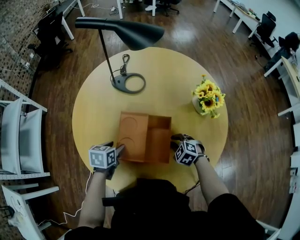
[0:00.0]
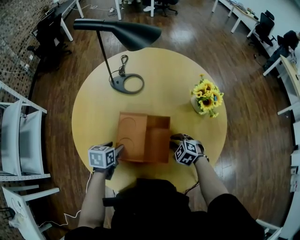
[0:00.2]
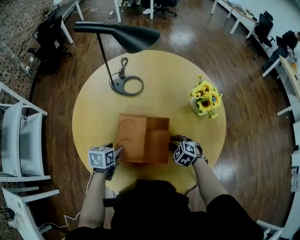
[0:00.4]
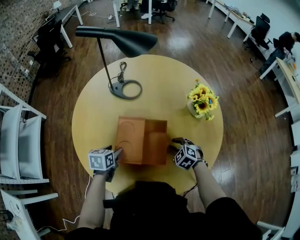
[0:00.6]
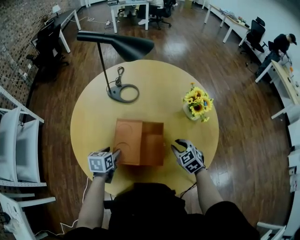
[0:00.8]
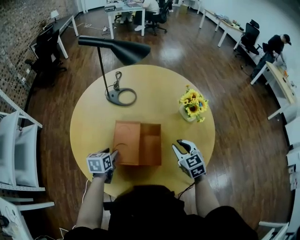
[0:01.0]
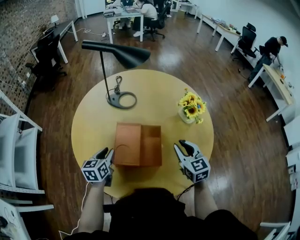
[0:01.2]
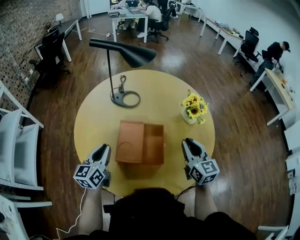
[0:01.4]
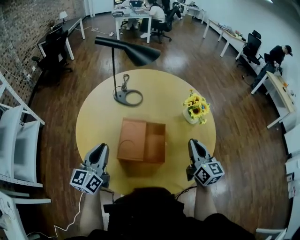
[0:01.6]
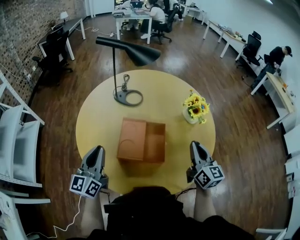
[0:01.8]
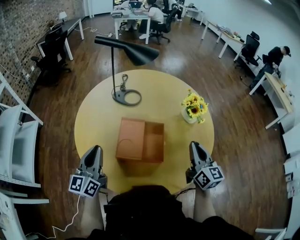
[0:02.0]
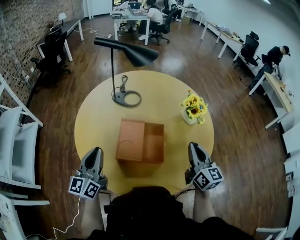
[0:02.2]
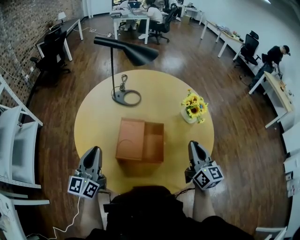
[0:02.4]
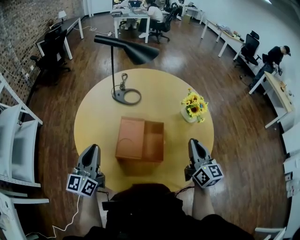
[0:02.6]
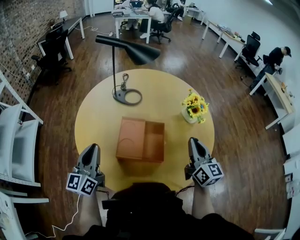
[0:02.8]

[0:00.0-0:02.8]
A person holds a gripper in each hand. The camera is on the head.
0:00.0 to 0:01.4: The right gripper shifts about 25 cm upward, and tilts its fingers roughly 50 degrees upward; the left gripper heads upward, covering roughly 15 cm, tilts its fingers about 40 degrees upward, and closes its fingers.
0:01.4 to 0:02.8: The left gripper travels backward and upward by roughly 5 cm.

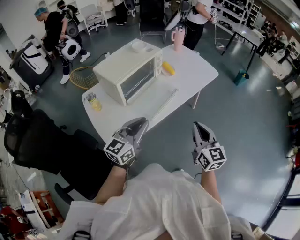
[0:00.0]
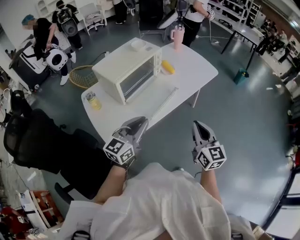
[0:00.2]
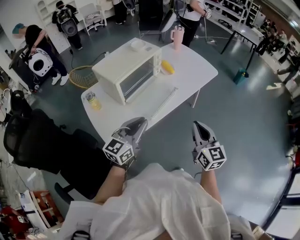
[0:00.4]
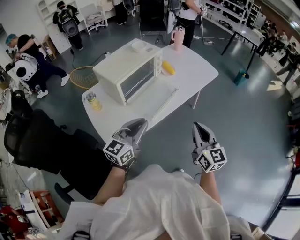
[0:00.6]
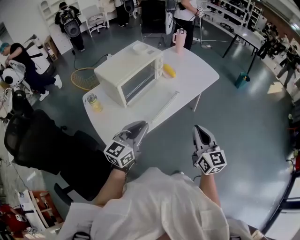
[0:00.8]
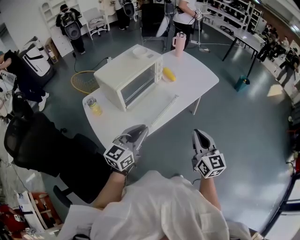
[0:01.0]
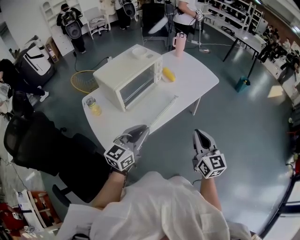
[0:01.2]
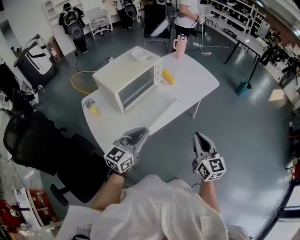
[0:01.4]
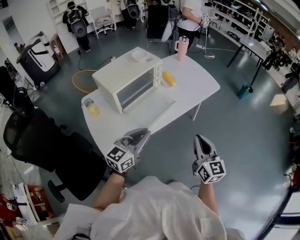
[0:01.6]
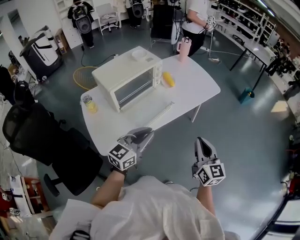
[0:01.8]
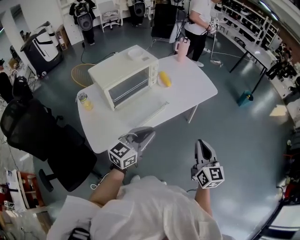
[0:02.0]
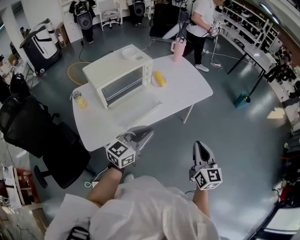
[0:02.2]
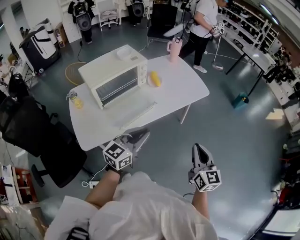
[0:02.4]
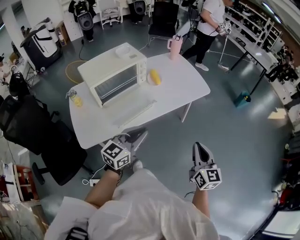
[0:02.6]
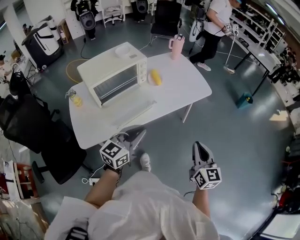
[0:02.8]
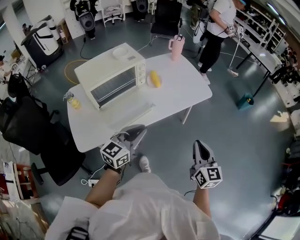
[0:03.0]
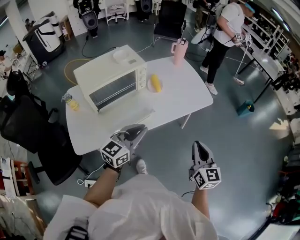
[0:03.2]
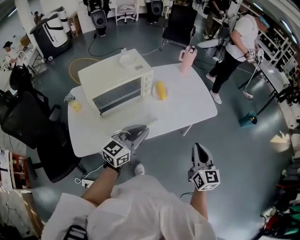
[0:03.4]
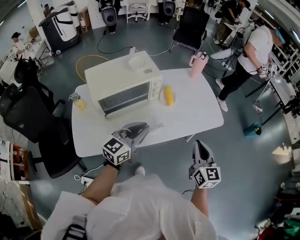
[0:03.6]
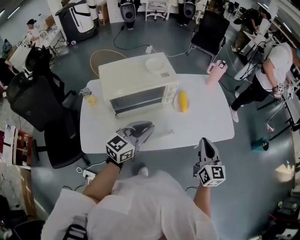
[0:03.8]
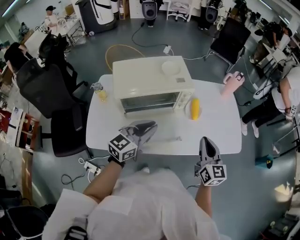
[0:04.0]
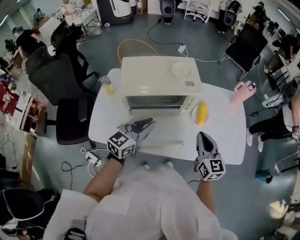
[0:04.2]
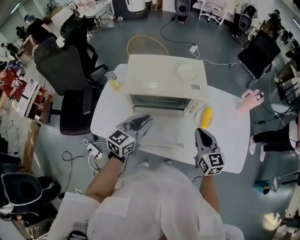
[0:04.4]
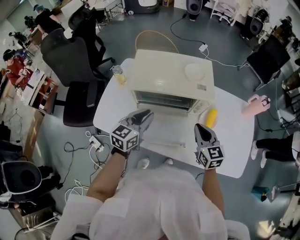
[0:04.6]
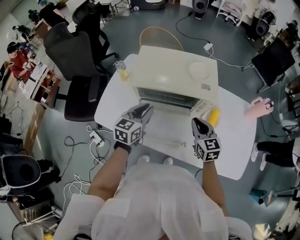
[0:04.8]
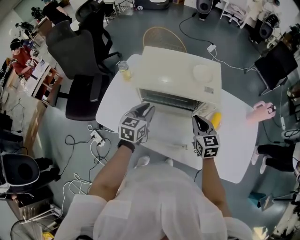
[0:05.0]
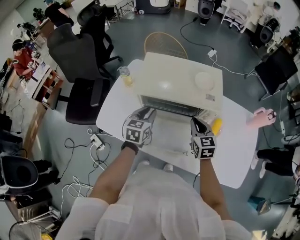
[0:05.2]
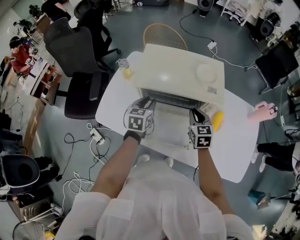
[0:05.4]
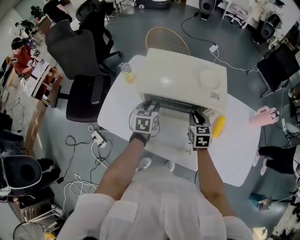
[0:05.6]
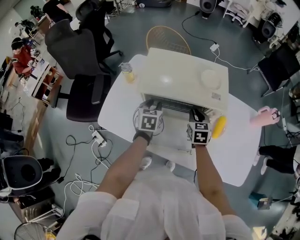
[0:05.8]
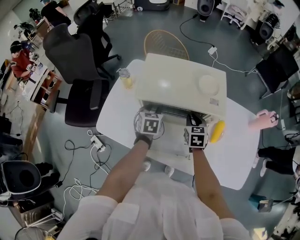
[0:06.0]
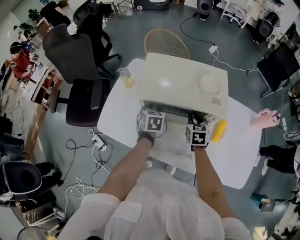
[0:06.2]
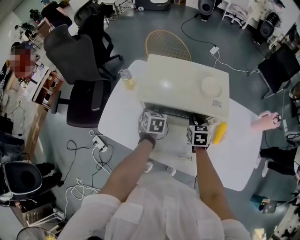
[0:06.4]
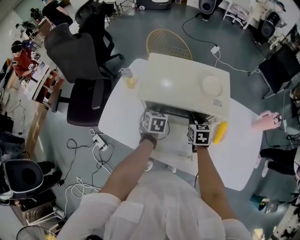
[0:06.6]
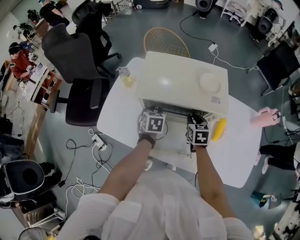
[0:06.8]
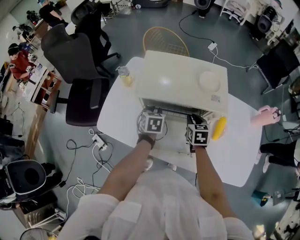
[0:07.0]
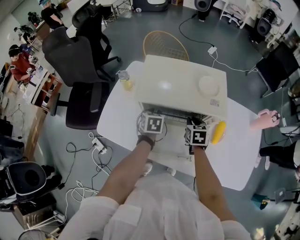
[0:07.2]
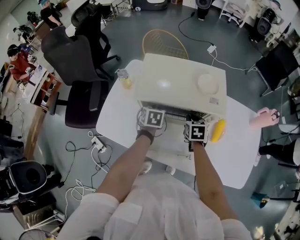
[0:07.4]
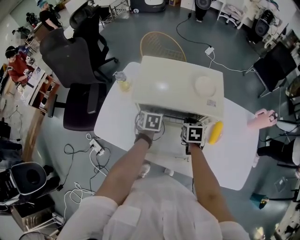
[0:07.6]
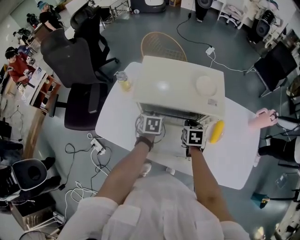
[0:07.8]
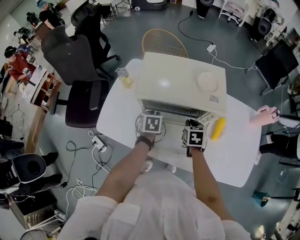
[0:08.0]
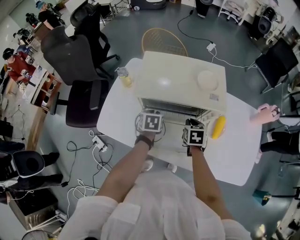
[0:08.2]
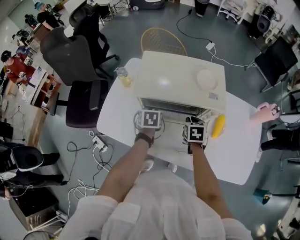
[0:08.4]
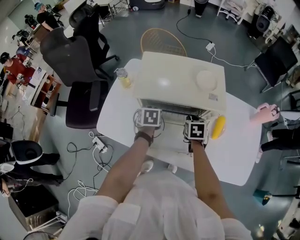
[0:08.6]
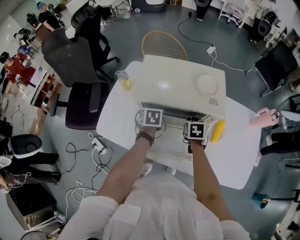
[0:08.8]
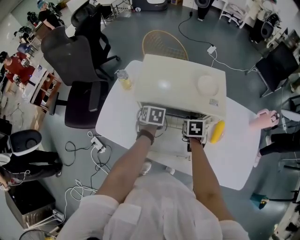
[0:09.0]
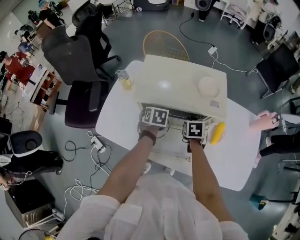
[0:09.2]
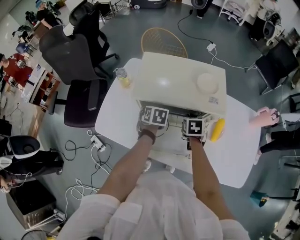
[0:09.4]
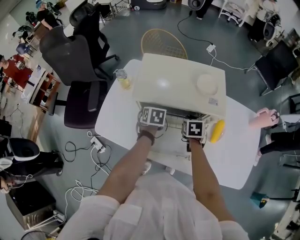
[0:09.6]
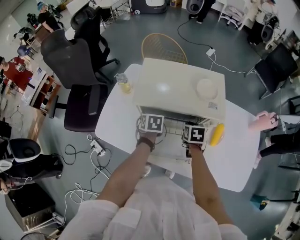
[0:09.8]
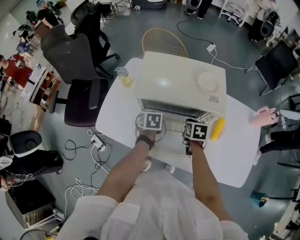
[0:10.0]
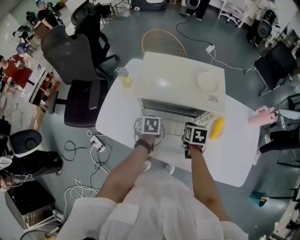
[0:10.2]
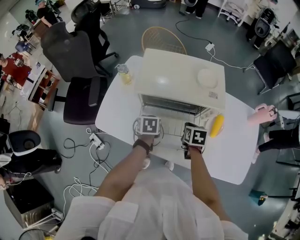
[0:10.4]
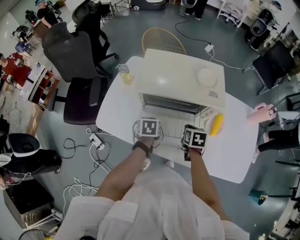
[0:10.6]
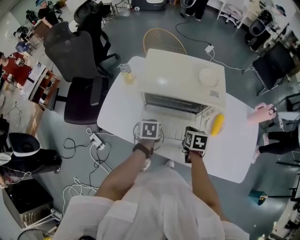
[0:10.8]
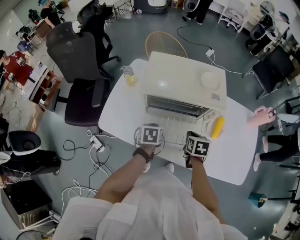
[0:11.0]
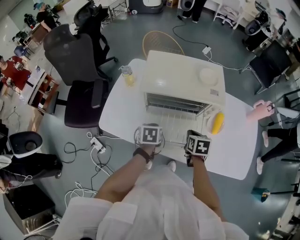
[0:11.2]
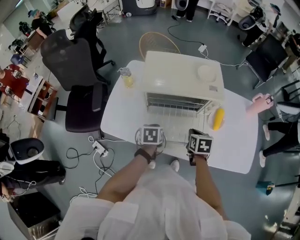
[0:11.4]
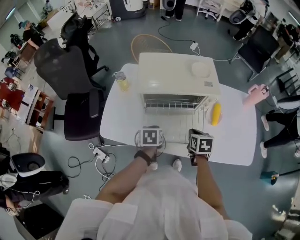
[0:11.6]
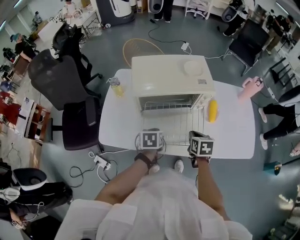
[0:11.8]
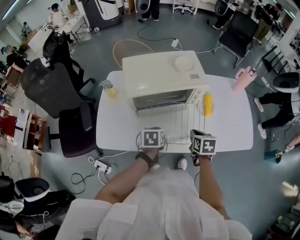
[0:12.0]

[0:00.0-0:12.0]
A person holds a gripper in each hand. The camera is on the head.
0:00.0 to 0:01.6: The grippers both shift to the right by roughly 5 cm.
0:01.6 to 0:03.0: The grippers both shift to the right and forward by approximately 20 cm.
0:03.0 to 0:04.4: The left gripper shifts by some 25 cm, and changes its angle by about 40 degrees. Meanwhile the right gripper ends up some 40 cm from where it was, and swivels approximately 50 degrees.
0:04.4 to 0:06.0: Both grippers travel together forward, downward and to the left, about 20 cm. The left gripper angles its fingers downward, by roughly 30 degrees; the right gripper swivels approximately 30 degrees.
0:06.0 to 0:09.0: The grippers make only small movements.
0:09.0 to 0:10.4: Both grippers travel together backward, about 5 cm.
0:10.4 to 0:12.0: The grippers both shift backward by approximately 10 cm.

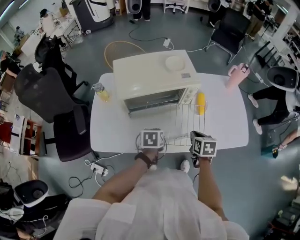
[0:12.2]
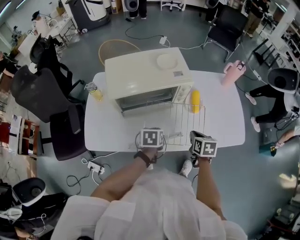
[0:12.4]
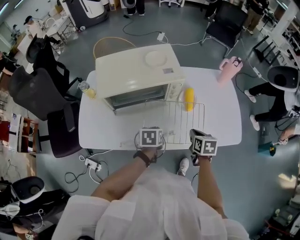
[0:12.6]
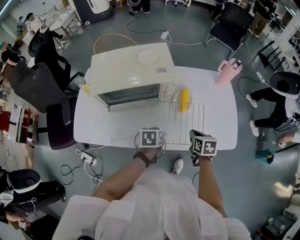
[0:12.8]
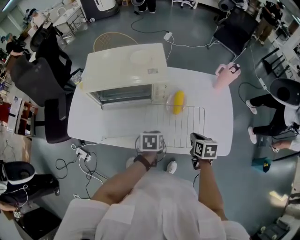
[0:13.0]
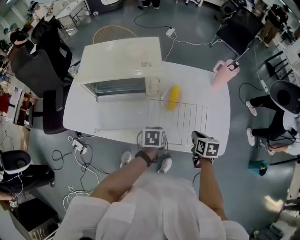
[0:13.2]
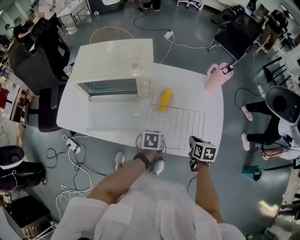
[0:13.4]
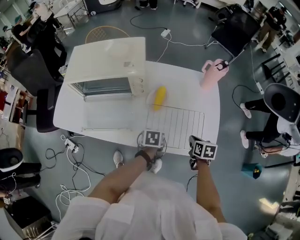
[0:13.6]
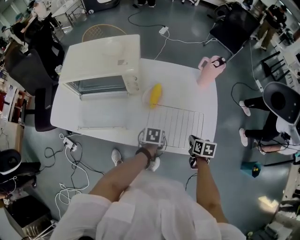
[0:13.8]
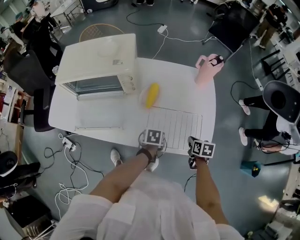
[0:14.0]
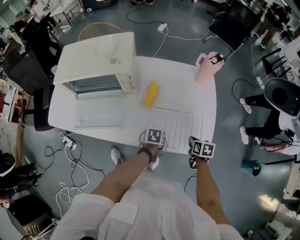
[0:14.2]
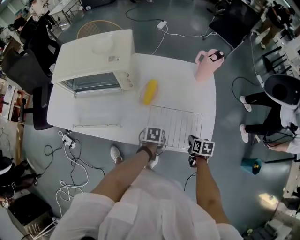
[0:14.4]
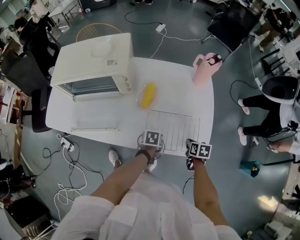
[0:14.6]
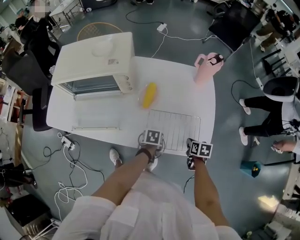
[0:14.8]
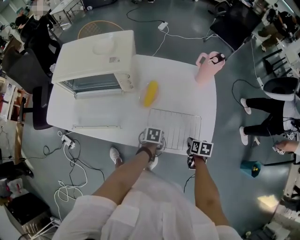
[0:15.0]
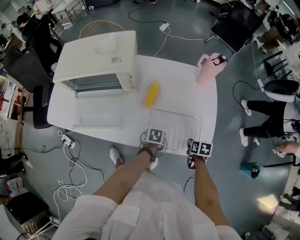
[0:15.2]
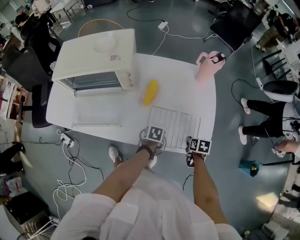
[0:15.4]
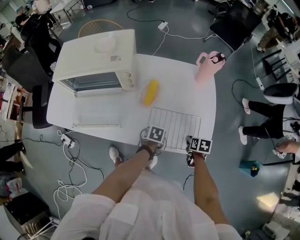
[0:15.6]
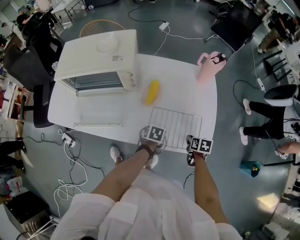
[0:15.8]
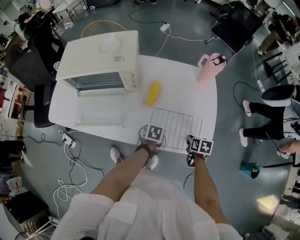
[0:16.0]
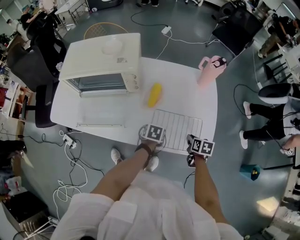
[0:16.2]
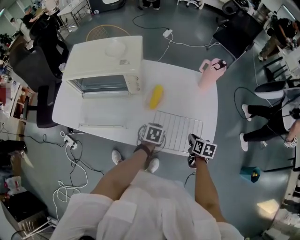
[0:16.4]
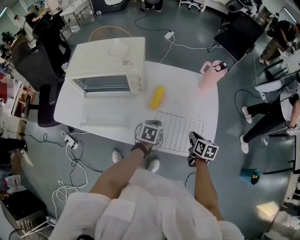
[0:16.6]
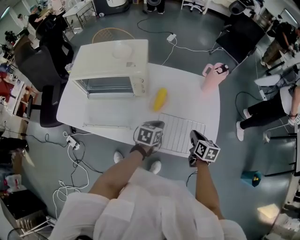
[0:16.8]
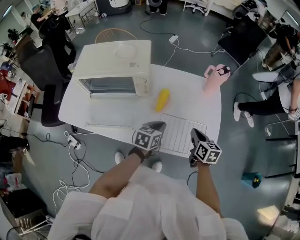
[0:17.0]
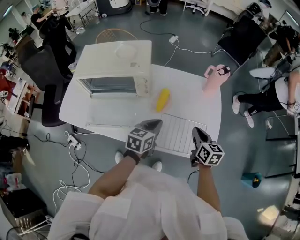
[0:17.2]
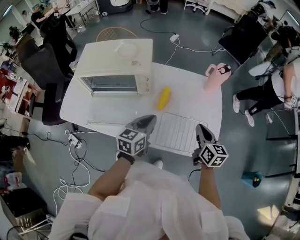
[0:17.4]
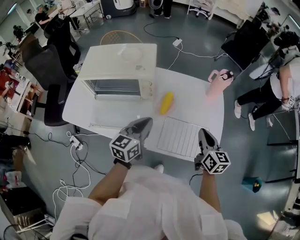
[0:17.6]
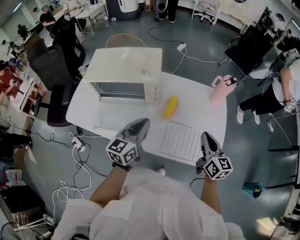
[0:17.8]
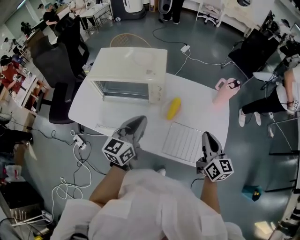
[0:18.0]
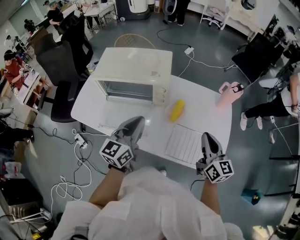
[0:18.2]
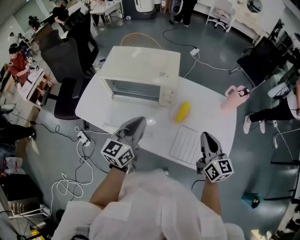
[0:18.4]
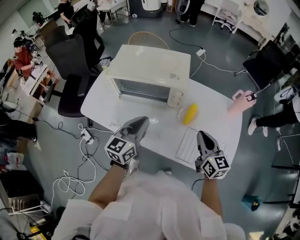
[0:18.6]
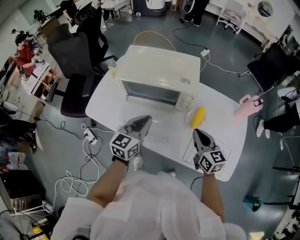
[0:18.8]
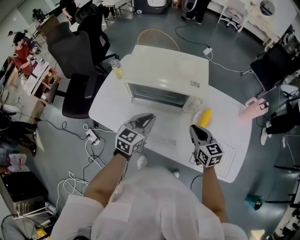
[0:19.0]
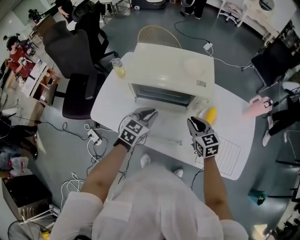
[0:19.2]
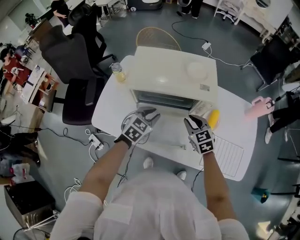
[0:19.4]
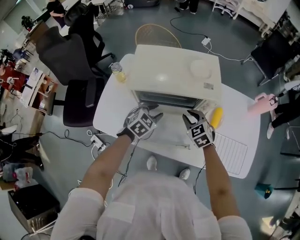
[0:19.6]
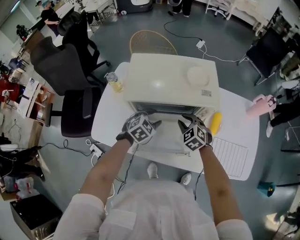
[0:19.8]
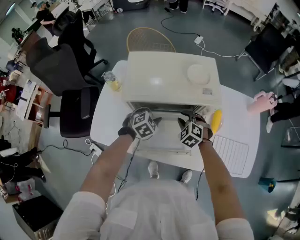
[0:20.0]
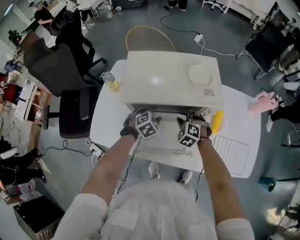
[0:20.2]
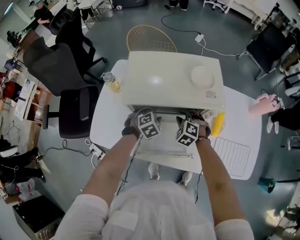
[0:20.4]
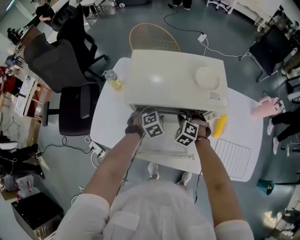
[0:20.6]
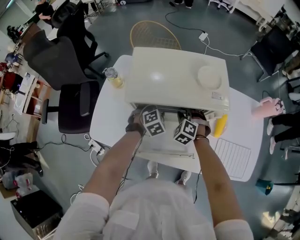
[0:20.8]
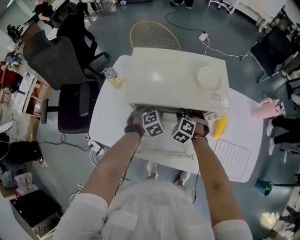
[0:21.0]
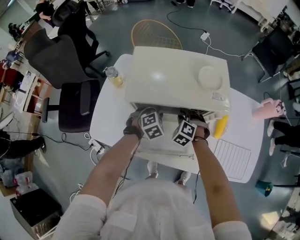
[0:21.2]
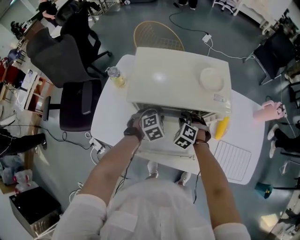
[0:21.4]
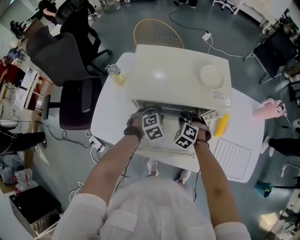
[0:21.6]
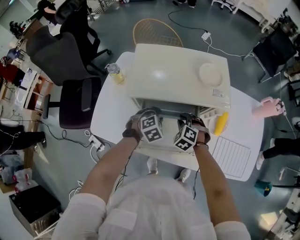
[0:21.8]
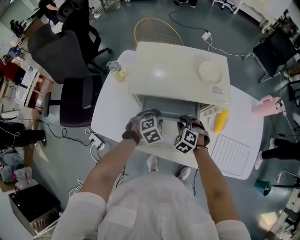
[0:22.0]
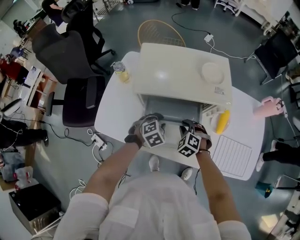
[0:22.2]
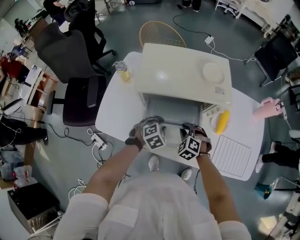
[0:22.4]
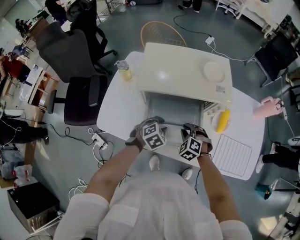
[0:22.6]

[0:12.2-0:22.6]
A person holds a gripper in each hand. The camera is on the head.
0:12.2 to 0:13.6: The two grippers go some 35 cm to the right.
0:13.6 to 0:15.2: Both grippers move downward and to the right, approximately 10 cm.
0:15.2 to 0:16.6: The left gripper is displaced upward, to the left and forward by some 15 cm, changes its angle by some 30 degrees, and opens, then closes once more. Meanwhile the right gripper goes some 10 cm upward, and turns by about 20 degrees.
0:16.6 to 0:18.2: The grippers both shift upward and to the left by about 30 cm. The left gripper points its fingers roughly 50 degrees further upward, while the right gripper points its fingers some 40 degrees further upward.
0:18.2 to 0:19.6: The left gripper is displaced downward, to the left and forward by approximately 30 cm, points its fingers approximately 40 degrees further downward, and opens up. Meanwhile the right gripper shifts some 40 cm to the left, forward and downward, tilts its fingers roughly 40 degrees downward, and opens.
0:19.6 to 0:21.2: The right gripper is displaced downward, to the left and forward by roughly 10 cm, and rotates roughly 30 degrees. Meanwhile the left gripper travels downward and forward by about 10 cm, and changes its angle by roughly 20 degrees.
0:21.2 to 0:22.6: The grippers both shift backward by some 10 cm.
